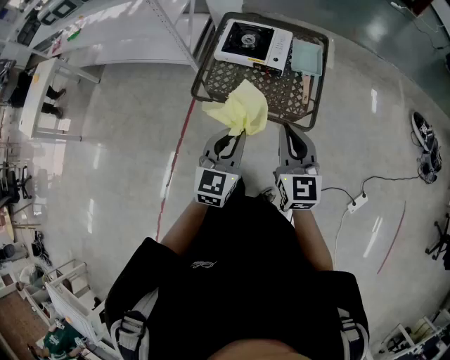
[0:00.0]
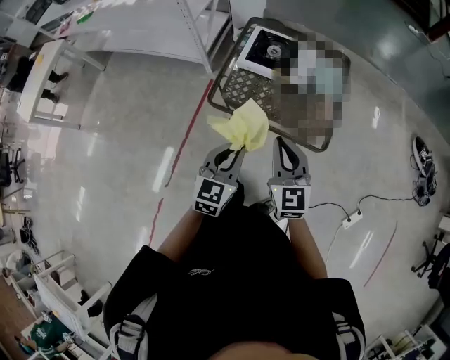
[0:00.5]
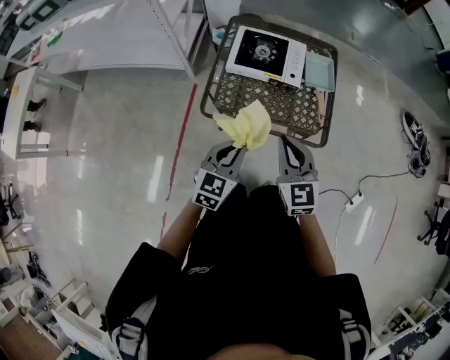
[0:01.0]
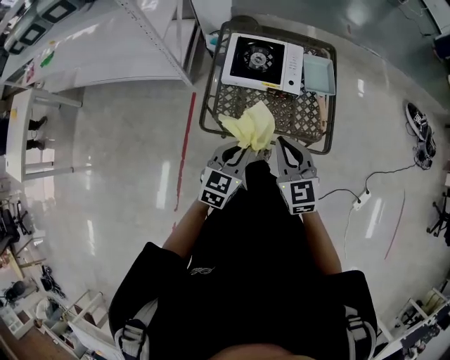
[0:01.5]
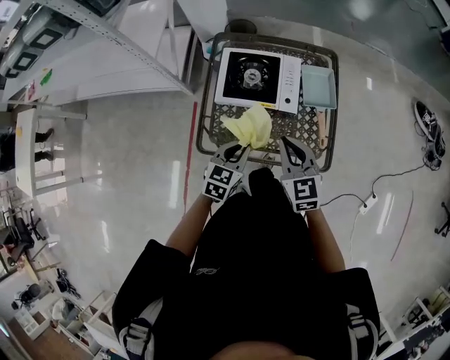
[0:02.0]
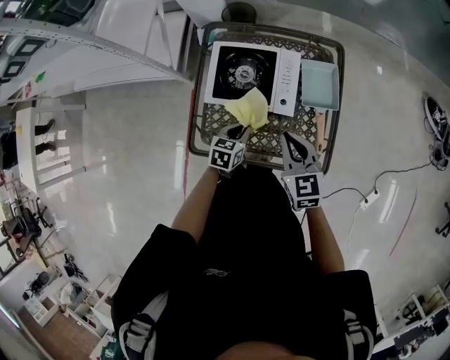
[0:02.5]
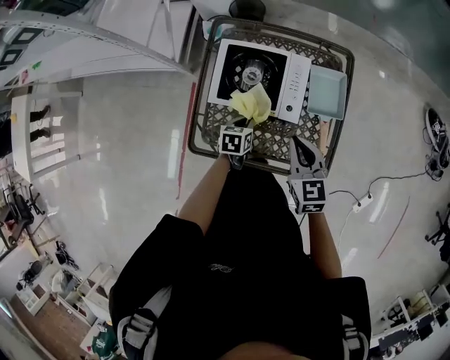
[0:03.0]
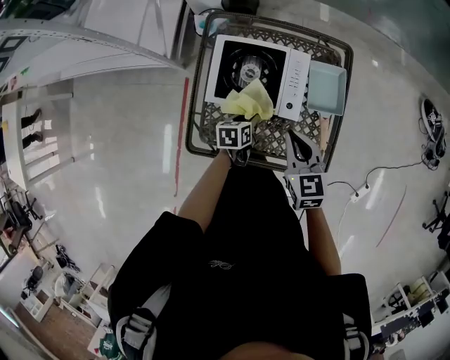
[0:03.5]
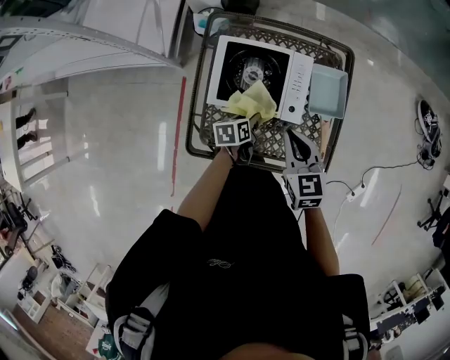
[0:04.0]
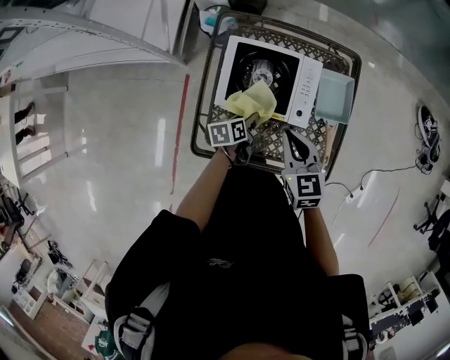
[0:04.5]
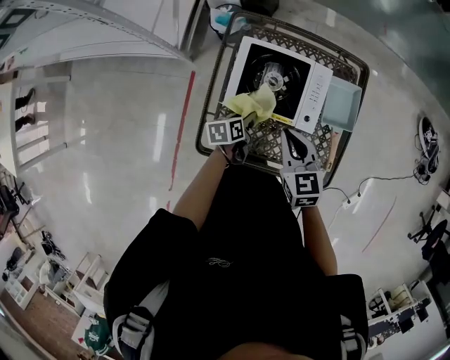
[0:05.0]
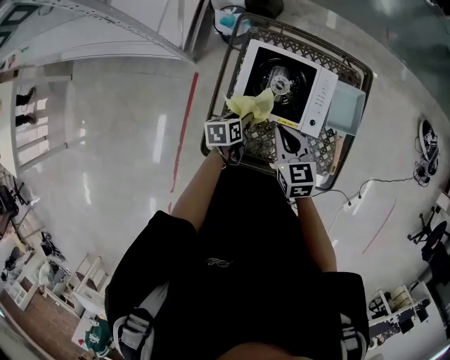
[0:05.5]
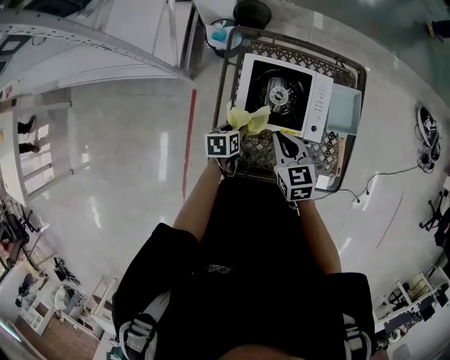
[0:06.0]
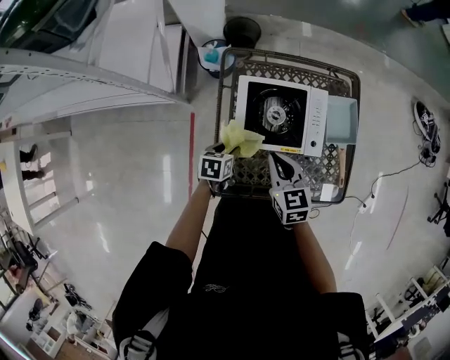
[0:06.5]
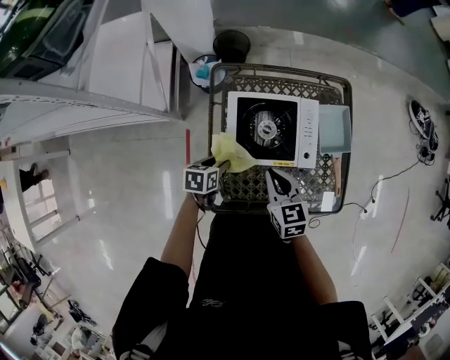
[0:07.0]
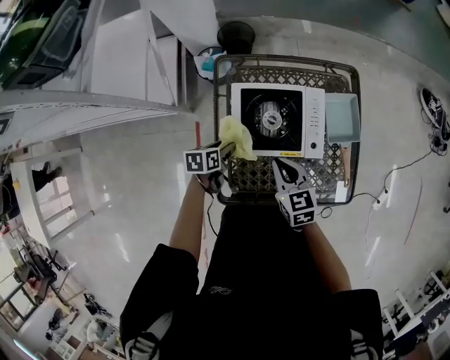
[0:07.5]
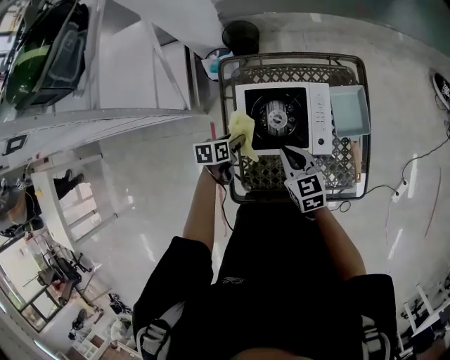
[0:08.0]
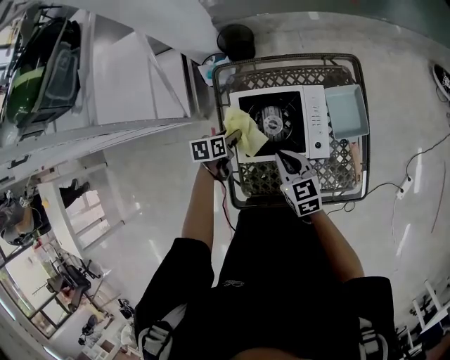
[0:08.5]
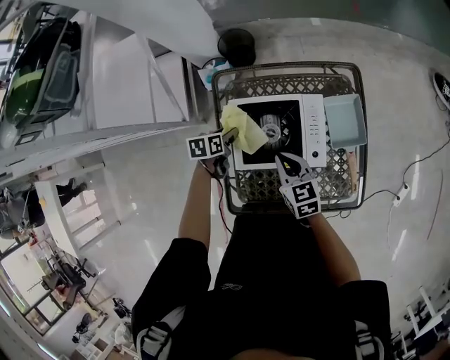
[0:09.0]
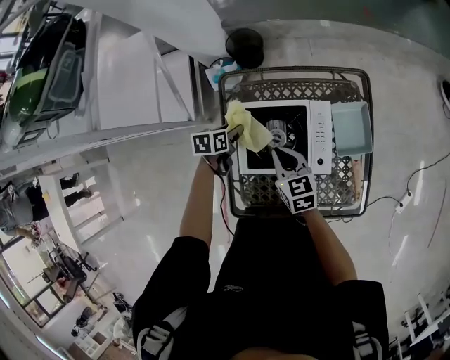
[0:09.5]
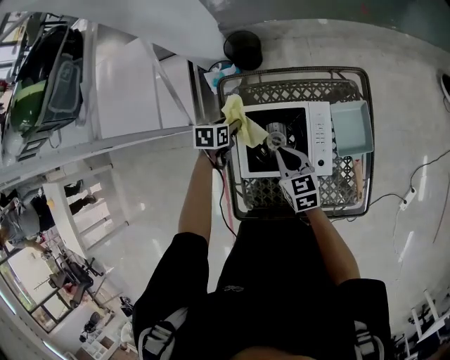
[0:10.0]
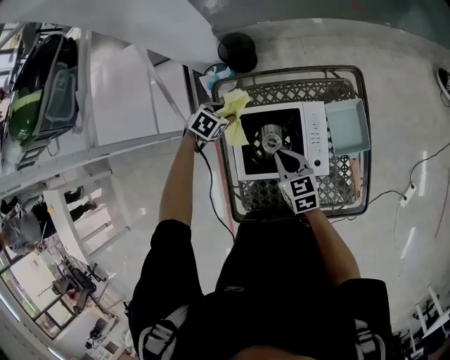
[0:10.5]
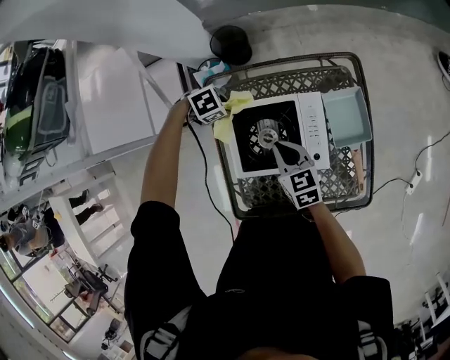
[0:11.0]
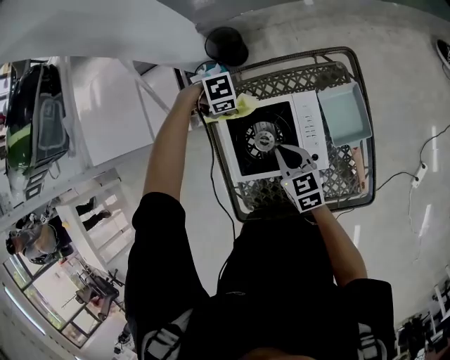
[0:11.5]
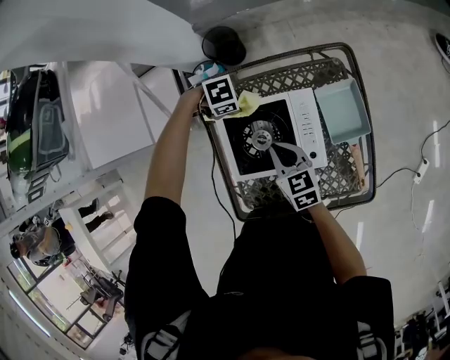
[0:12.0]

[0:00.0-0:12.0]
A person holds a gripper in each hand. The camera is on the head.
0:00.0 to 0:02.0: The left gripper goes about 30 cm forward and downward, and turns by about 30 degrees; the right gripper is displaced forward, downward and to the left by some 25 cm.
0:02.0 to 0:04.0: The left gripper is displaced downward and forward by approximately 25 cm, rolls counterclockwise, seen from behind, by approximately 50 degrees, and opens. Meanwhile the right gripper heads forward and downward, covering about 15 cm.
0:04.0 to 0:06.0: The left gripper is displaced to the left by roughly 15 cm. The right gripper goes approximately 15 cm to the left and downward.
0:06.0 to 0:08.0: The left gripper travels forward by about 10 cm.
0:08.0 to 0:10.0: The right gripper goes roughly 5 cm forward, while the left gripper shifts roughly 15 cm forward.
0:10.0 to 0:12.0: The left gripper ends up some 10 cm from where it was, and rotates about 80 degrees.

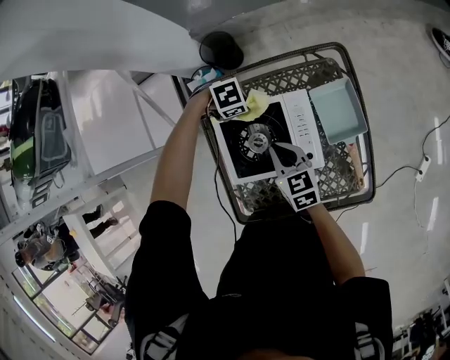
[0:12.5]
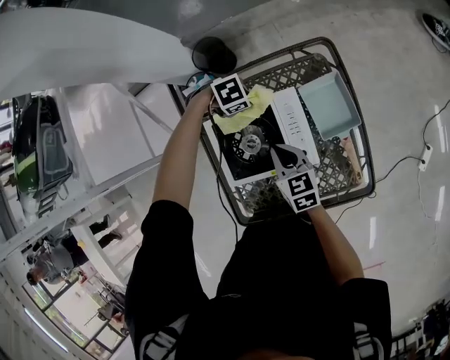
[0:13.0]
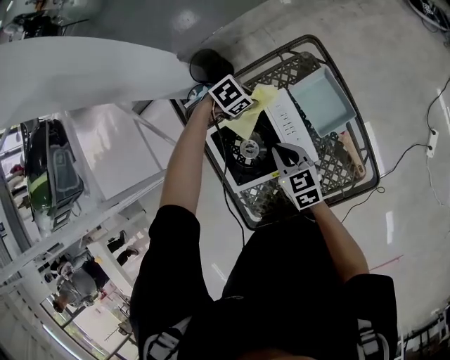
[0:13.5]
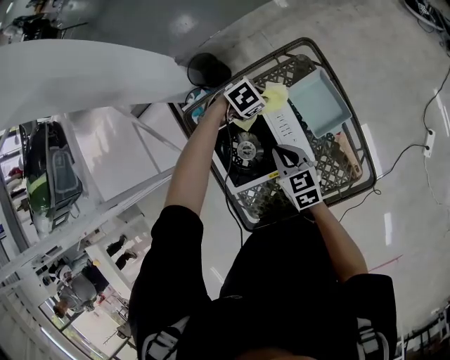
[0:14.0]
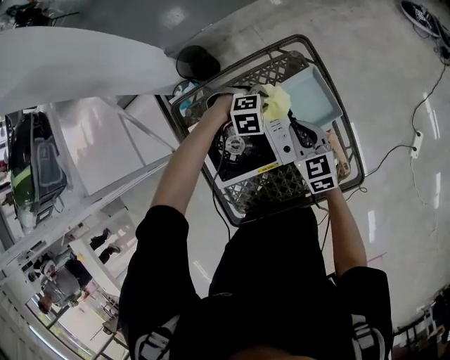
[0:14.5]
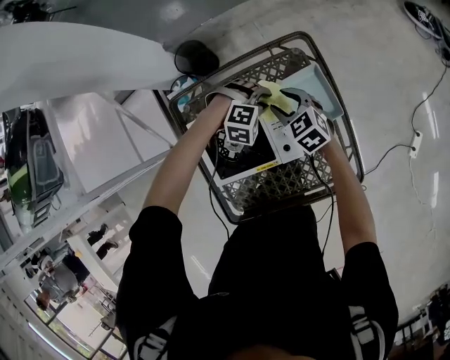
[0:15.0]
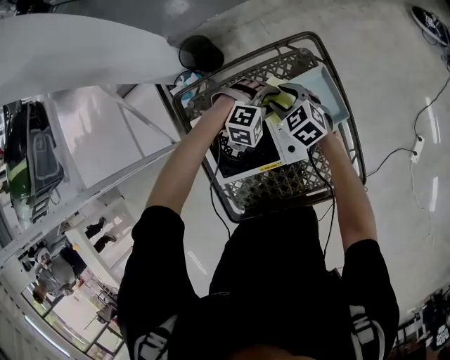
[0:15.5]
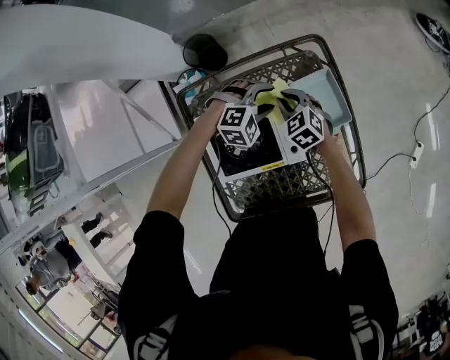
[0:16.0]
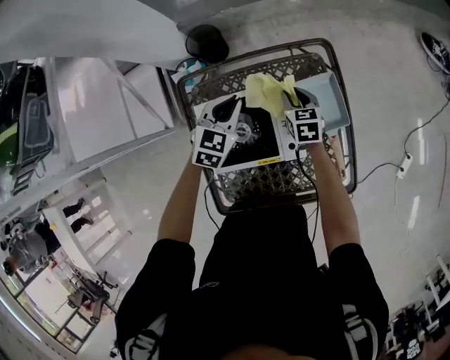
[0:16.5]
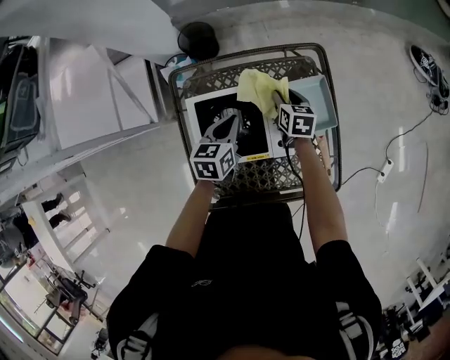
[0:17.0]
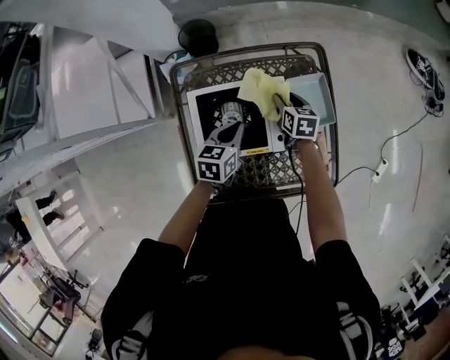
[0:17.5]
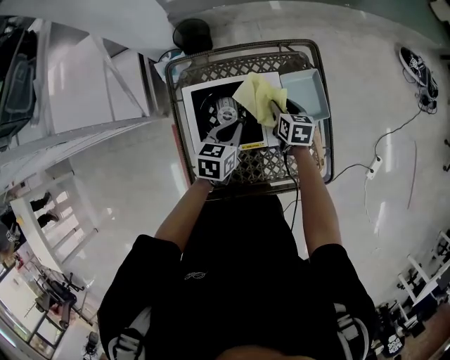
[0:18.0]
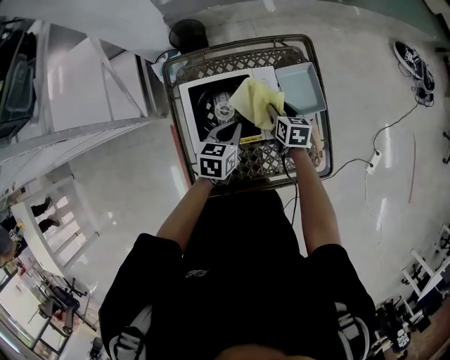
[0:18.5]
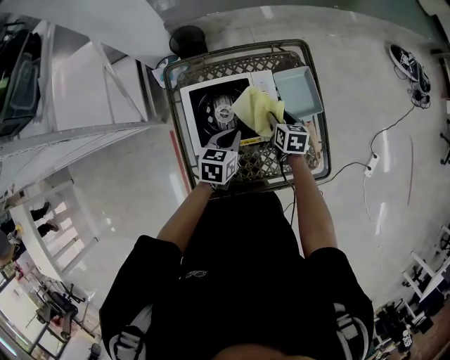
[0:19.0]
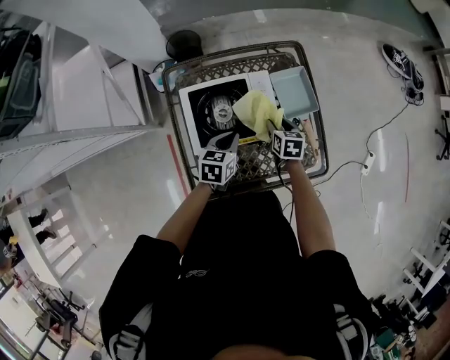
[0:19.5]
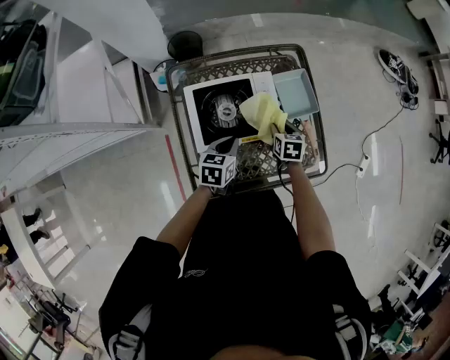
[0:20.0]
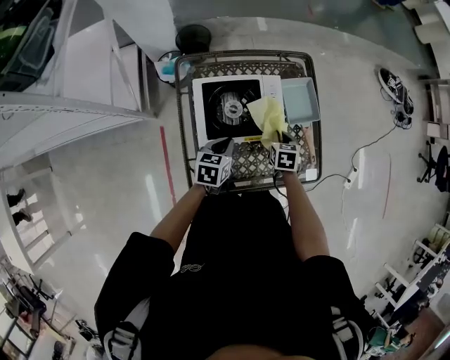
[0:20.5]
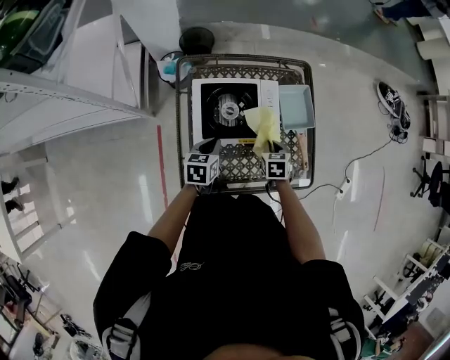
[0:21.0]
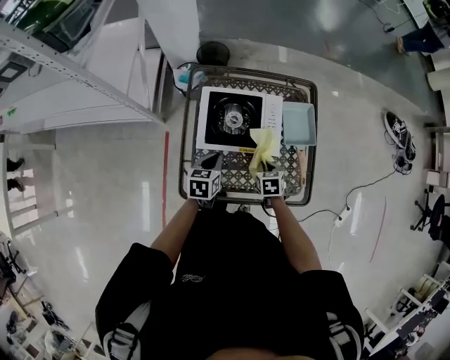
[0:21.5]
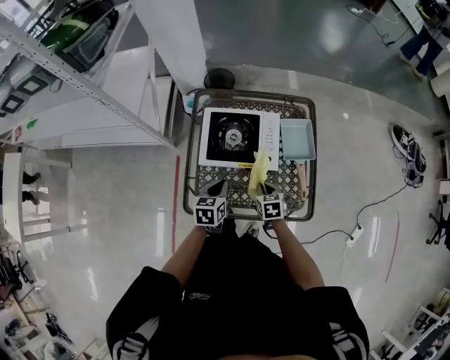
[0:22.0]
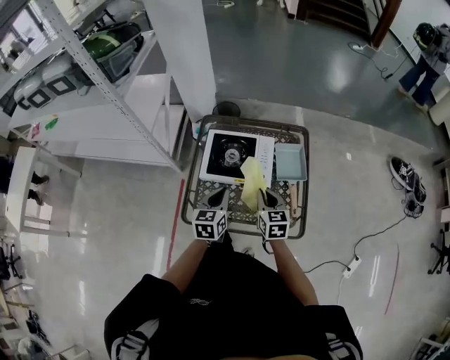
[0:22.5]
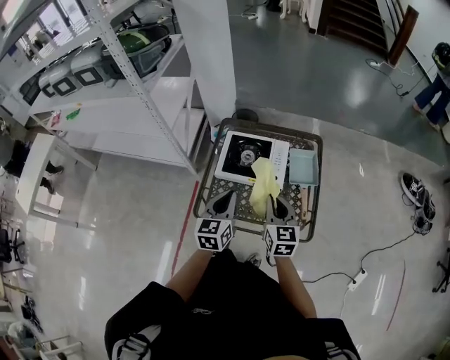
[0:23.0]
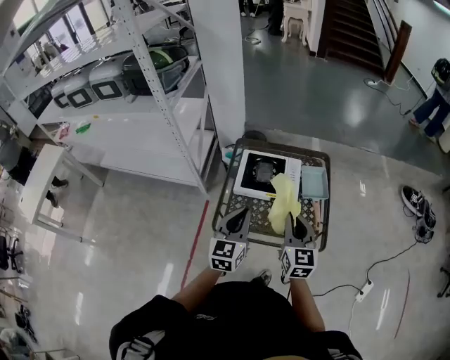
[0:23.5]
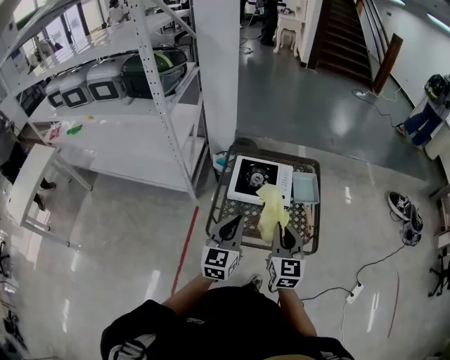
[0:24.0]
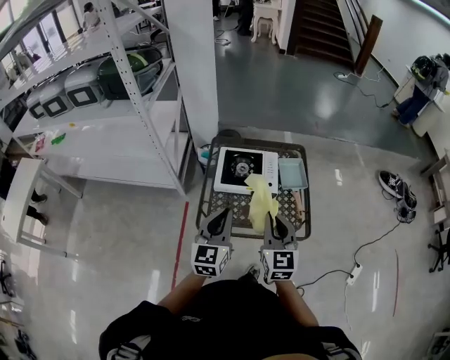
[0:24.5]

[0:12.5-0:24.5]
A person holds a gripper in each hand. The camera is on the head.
0:12.5 to 0:14.5: The right gripper moves about 15 cm; the left gripper shifts by approximately 15 cm, and rotates approximately 40 degrees.
0:14.5 to 0:16.5: The right gripper moves about 10 cm, and opens. Meanwhile the left gripper moves about 15 cm, angles its fingers upward, by roughly 30 degrees, and opens, then closes again.
0:16.5 to 0:18.5: Both grippers move backward, some 10 cm. The right gripper opens. Meanwhile the left gripper changes its angle by about 30 degrees.
0:18.5 to 0:20.5: The grippers both shift backward by approximately 10 cm. The right gripper closes.
0:20.5 to 0:22.5: The two grippers go some 15 cm upward. The left gripper rotates some 30 degrees. Meanwhile the right gripper changes its angle by some 40 degrees.
0:22.5 to 0:24.5: The left gripper is displaced upward, backward and to the left by about 25 cm, and turns by about 20 degrees; the right gripper heads upward and backward, covering roughly 25 cm, and changes its angle by about 30 degrees.

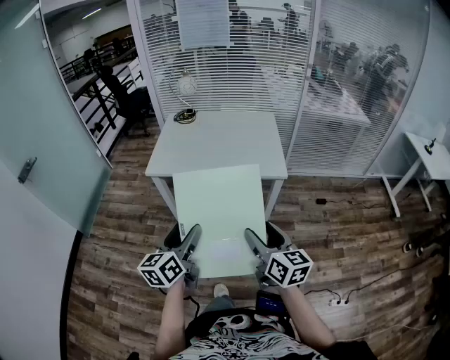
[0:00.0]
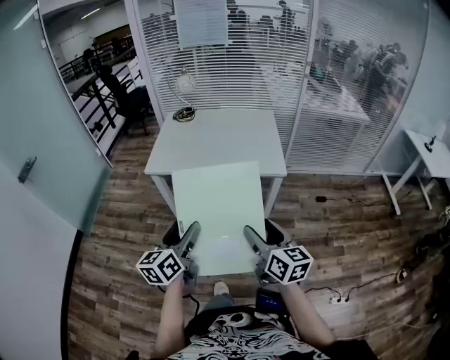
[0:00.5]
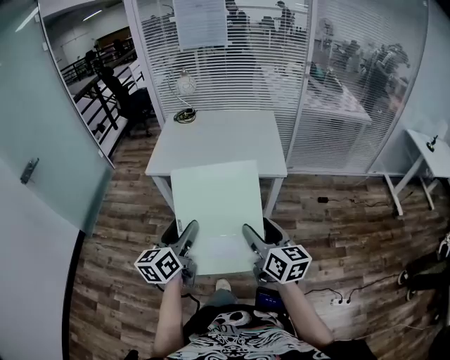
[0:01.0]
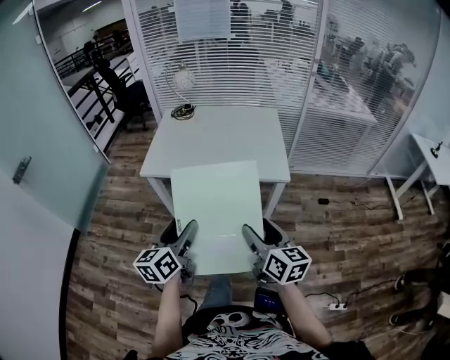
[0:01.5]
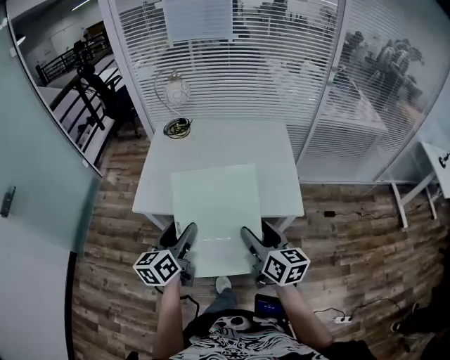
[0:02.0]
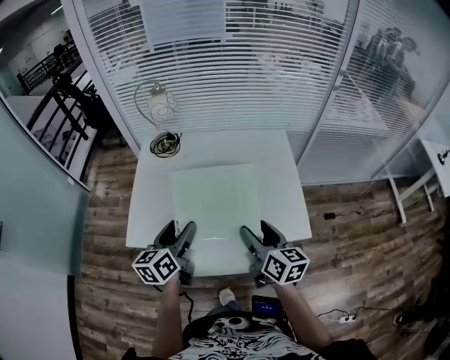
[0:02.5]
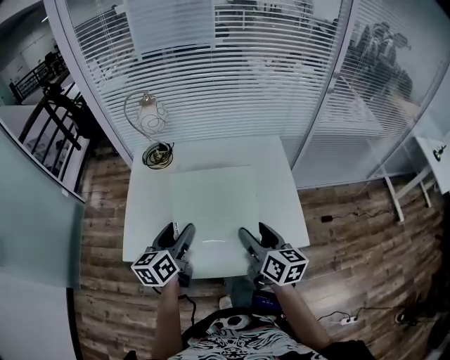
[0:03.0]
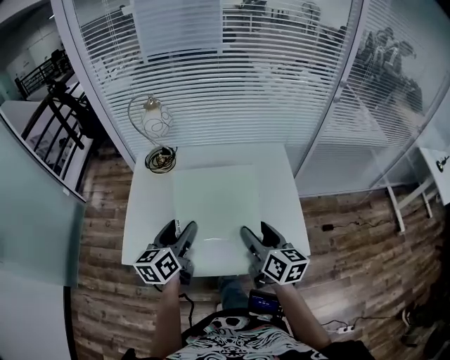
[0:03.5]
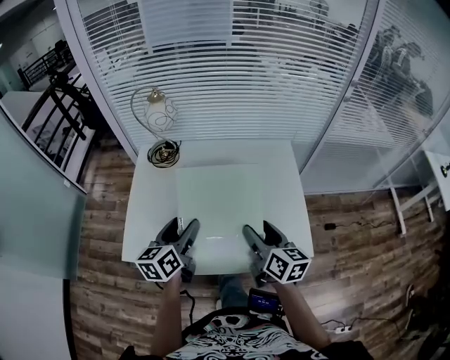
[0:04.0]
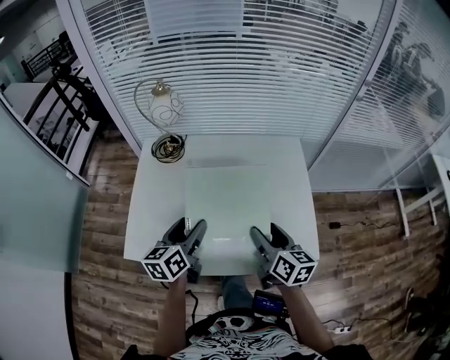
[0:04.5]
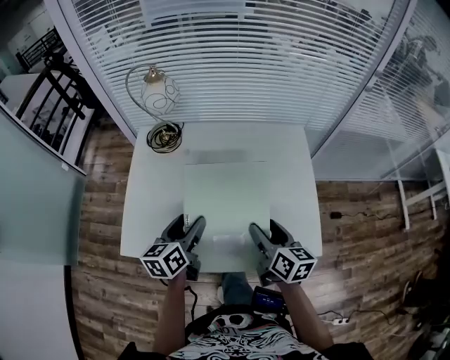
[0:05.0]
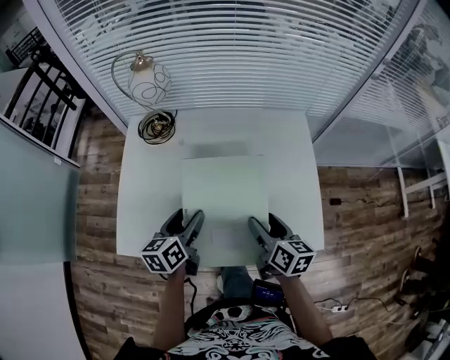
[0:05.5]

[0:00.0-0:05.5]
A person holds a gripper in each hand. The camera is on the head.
0:00.0 to 0:02.0: The two grippers go about 30 cm forward.
0:02.0 to 0:03.5: The two grippers go about 20 cm forward.
0:03.5 to 0:05.5: Both grippers travel together downward, approximately 10 cm.